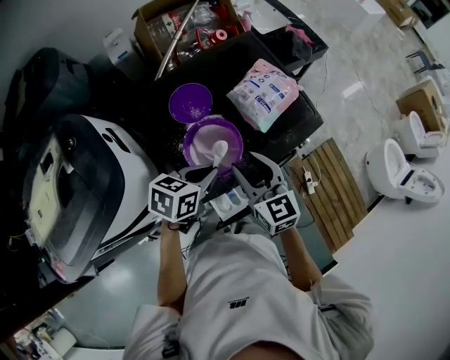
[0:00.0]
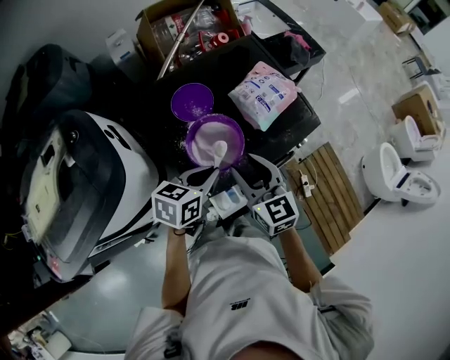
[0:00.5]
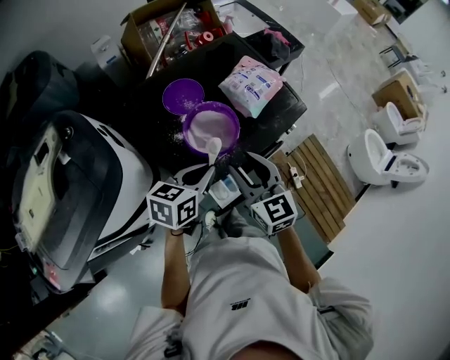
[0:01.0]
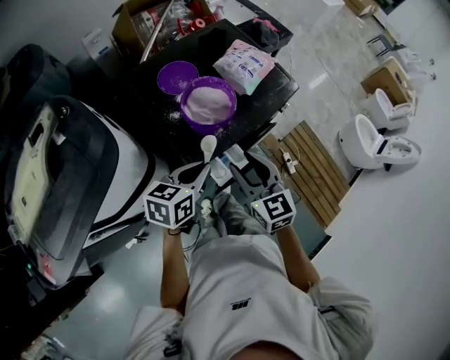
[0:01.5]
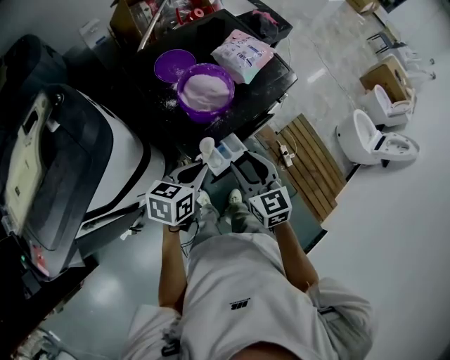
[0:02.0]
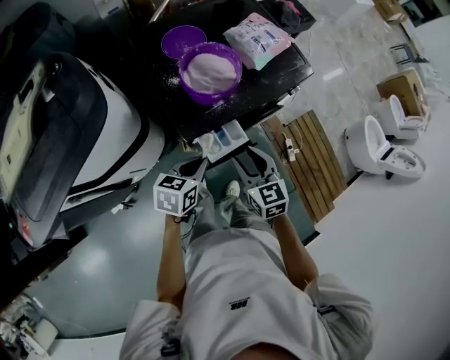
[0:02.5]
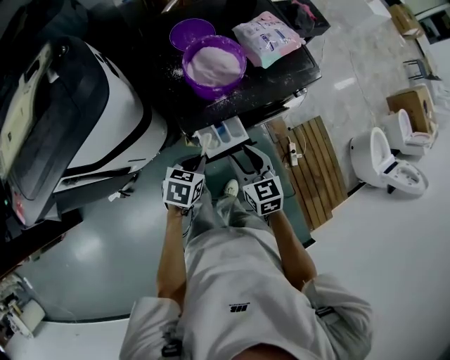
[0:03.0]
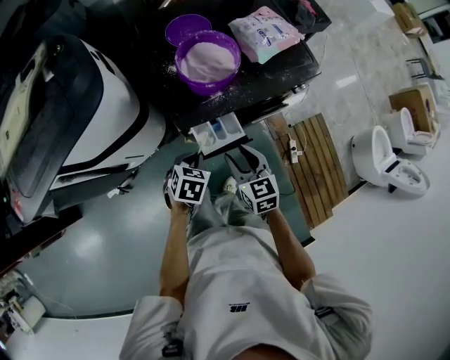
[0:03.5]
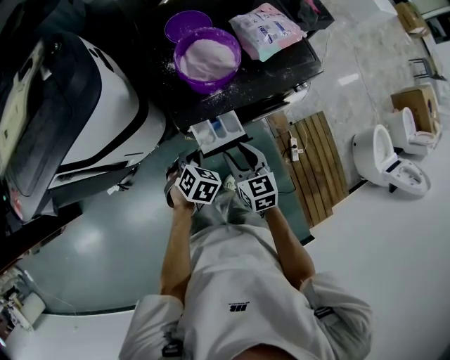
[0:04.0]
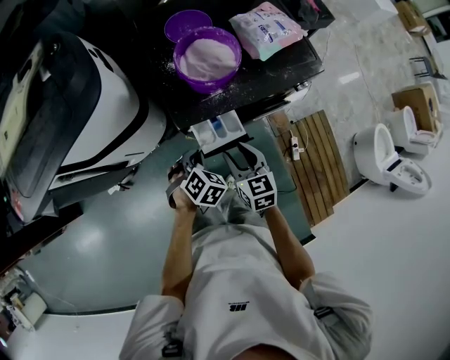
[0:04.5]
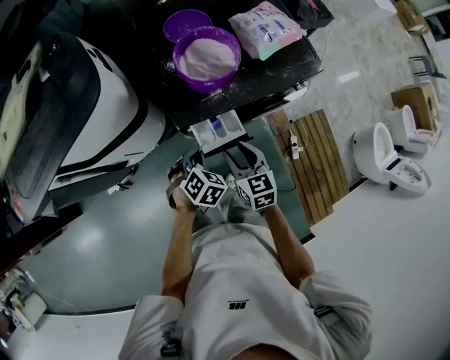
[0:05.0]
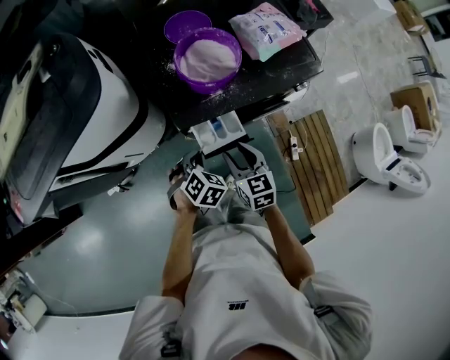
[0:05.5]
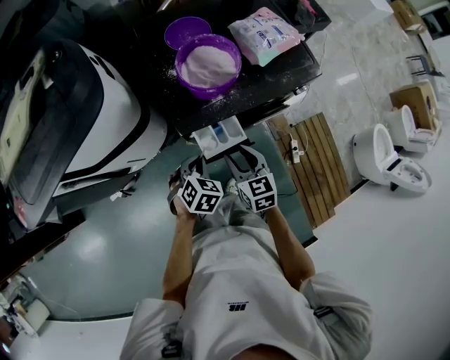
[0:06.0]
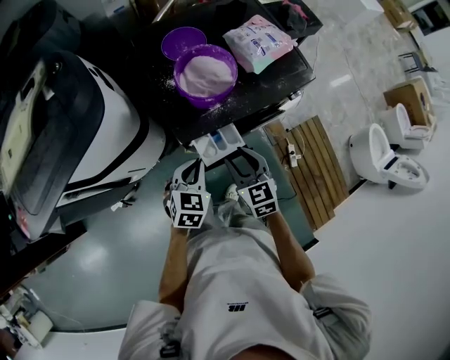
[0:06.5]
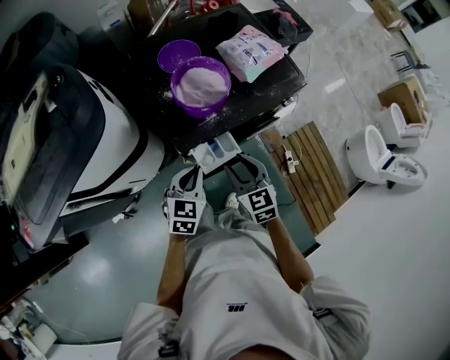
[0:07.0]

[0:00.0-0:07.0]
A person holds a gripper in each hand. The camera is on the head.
0.0 to 2.0 s: Both grippers travel together backward, some 20 cm.
2.0 to 3.5 s: Both grippers move downward, roughly 15 cm. The left gripper changes its angle by some 30 degrees.
3.5 to 5.0 s: The left gripper changes its angle by roughly 20 degrees.
5.0 to 7.0 s: The right gripper is displaced upward by about 5 cm; the left gripper goes about 10 cm upward, and swivels about 30 degrees.

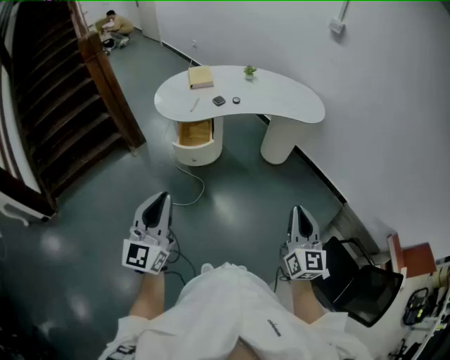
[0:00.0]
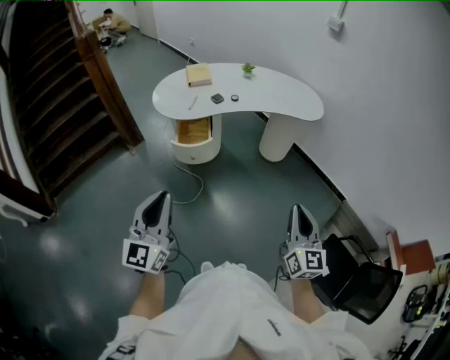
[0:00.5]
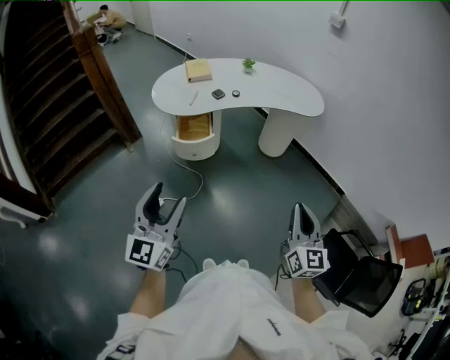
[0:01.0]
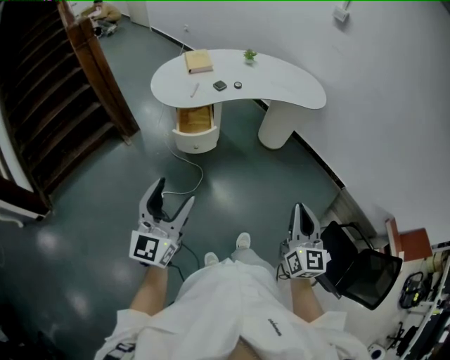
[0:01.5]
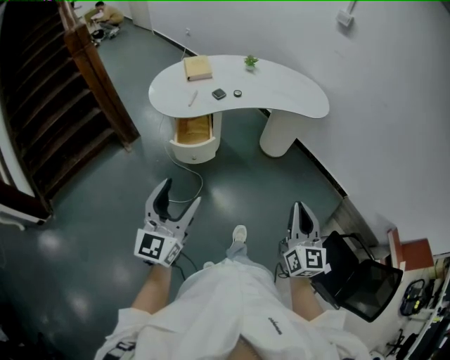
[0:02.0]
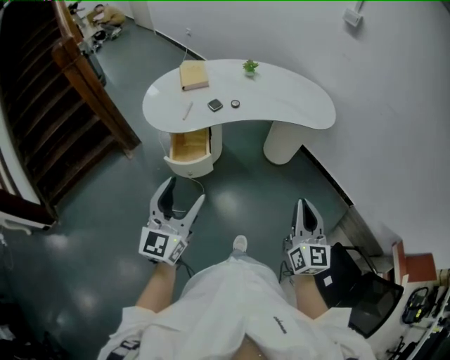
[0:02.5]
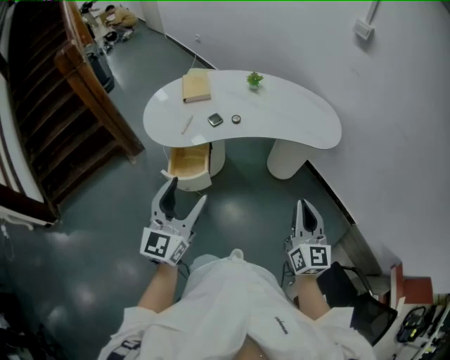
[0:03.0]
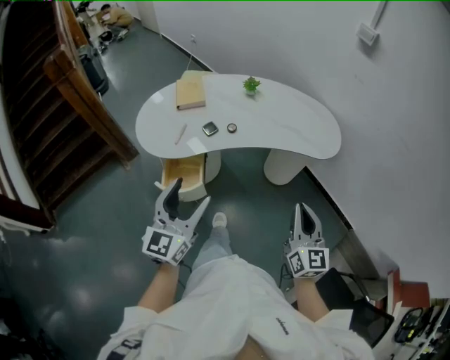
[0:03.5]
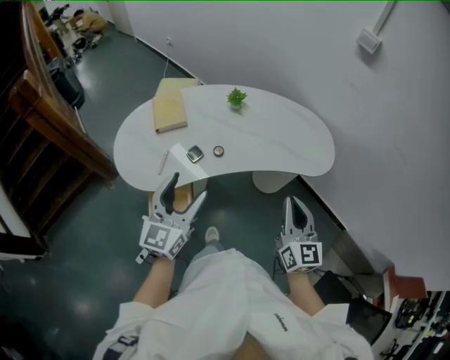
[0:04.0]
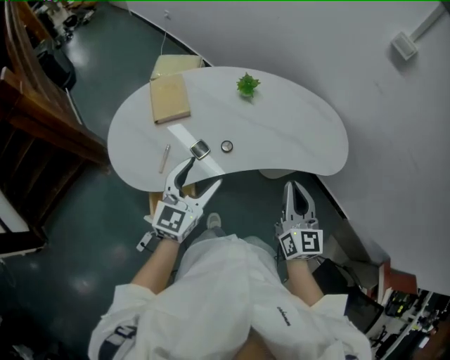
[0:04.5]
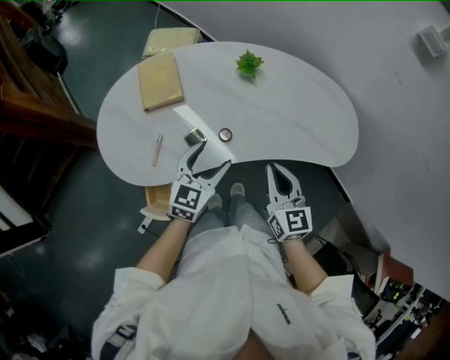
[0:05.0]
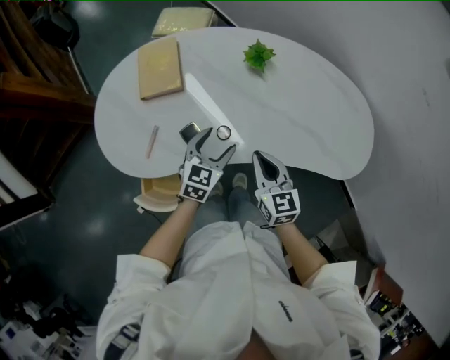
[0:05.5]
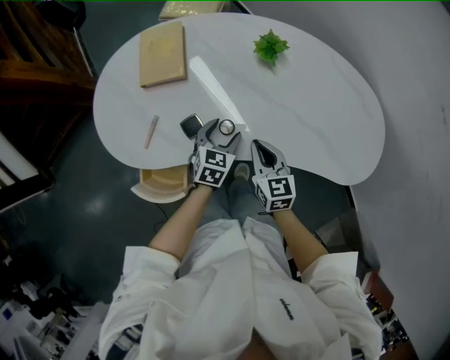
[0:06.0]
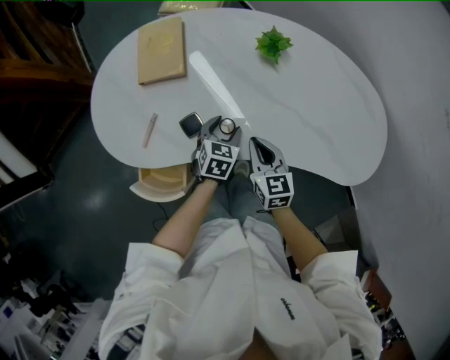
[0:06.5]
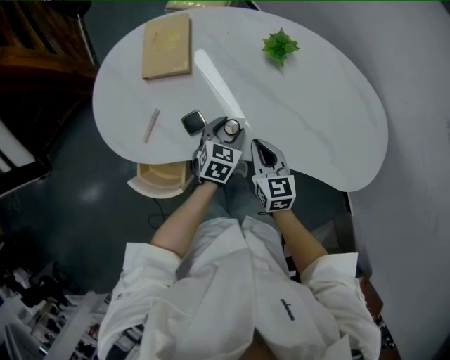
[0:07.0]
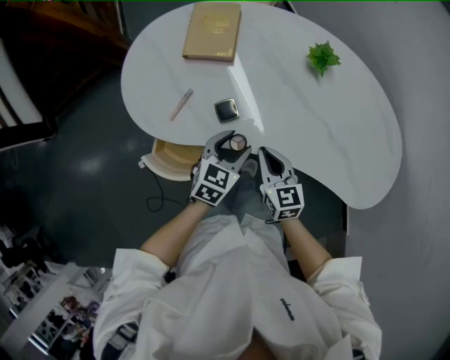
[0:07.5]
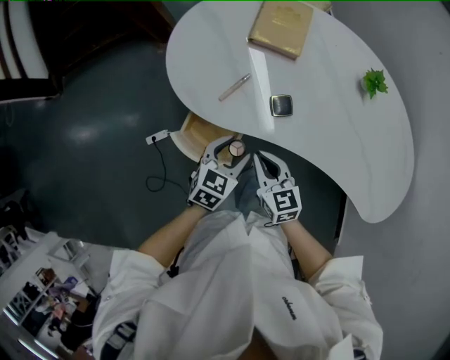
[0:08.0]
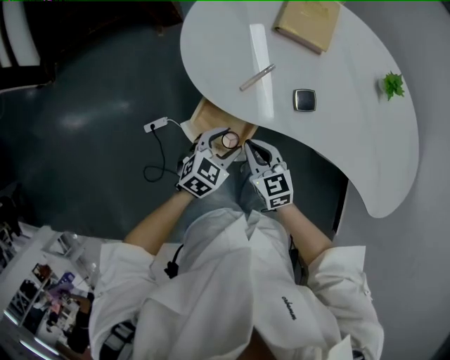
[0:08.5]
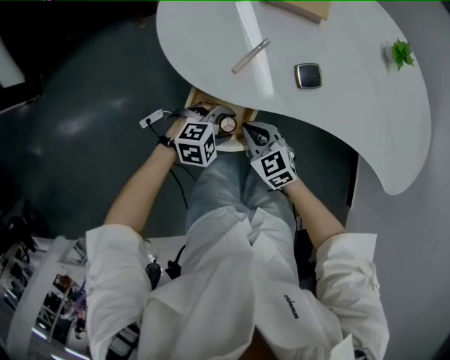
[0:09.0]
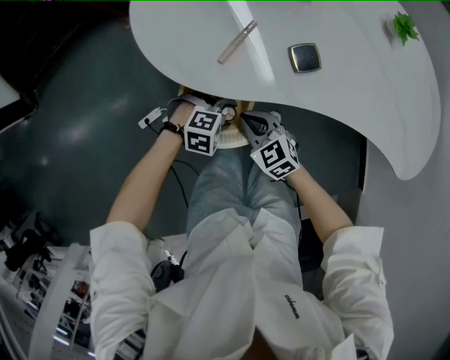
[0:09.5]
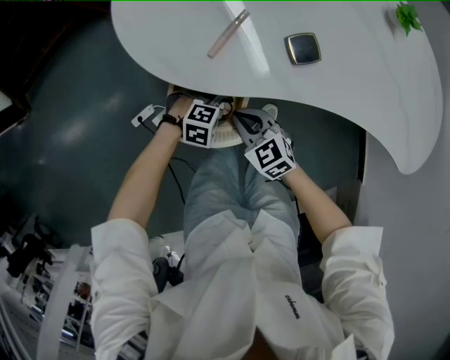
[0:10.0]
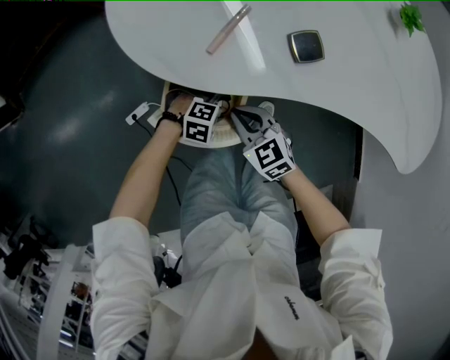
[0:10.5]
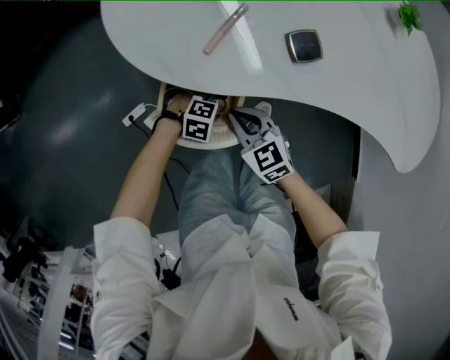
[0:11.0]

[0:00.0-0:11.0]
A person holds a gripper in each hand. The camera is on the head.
0.0 to 2.0 s: The left gripper goes about 10 cm forward, and opens its fingers, while the right gripper heads forward and to the left, covering about 10 cm.
2.0 to 3.5 s: Both grippers move forward, about 30 cm.
3.5 to 5.5 s: The two grippers travel together, forward, about 40 cm. The two grippers go about 25 cm downward. The right gripper swivels about 30 degrees. Meanwhile the left gripper angles its fingers downward, by about 40 degrees.
5.5 to 7.5 s: The left gripper moves approximately 10 cm downward and comes back; the right gripper heads to the left and downward, covering roughly 10 cm, and swivels about 20 degrees.
7.5 to 9.0 s: The left gripper ends up some 30 cm from where it was, and changes its angle by approximately 50 degrees; the right gripper ends up about 30 cm from where it was, and rotates about 40 degrees.
9.0 to 11.0 s: The left gripper travels downward by some 15 cm, and changes its angle by about 20 degrees.

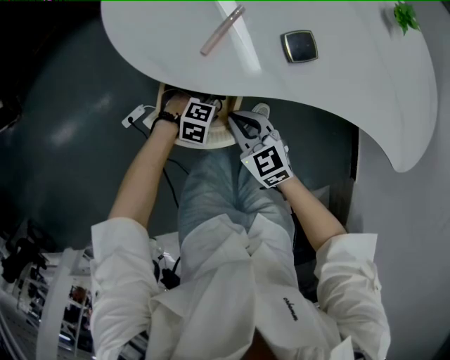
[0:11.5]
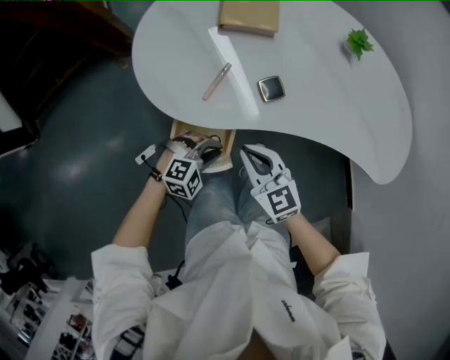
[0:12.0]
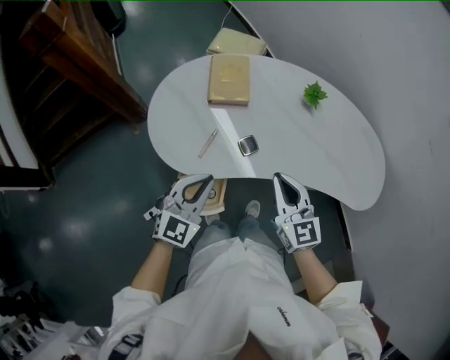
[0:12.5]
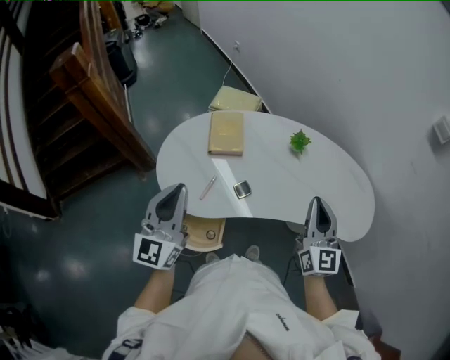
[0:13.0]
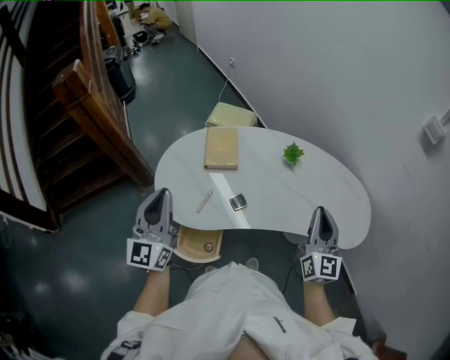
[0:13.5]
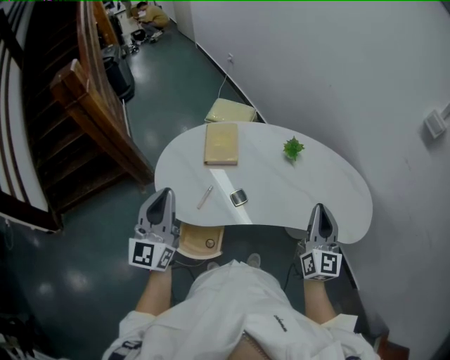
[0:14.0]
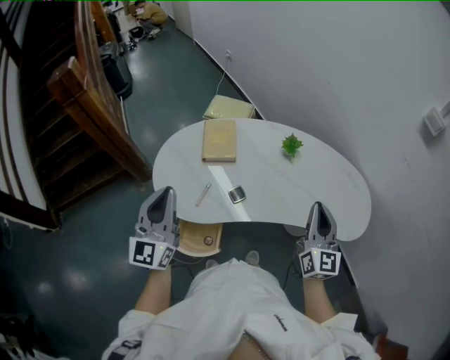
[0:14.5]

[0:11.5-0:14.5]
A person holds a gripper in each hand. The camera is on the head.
11.5 to 13.0 s: The two grippers go some 60 cm upward. The right gripper points its fingers some 40 degrees further upward; the left gripper tips its fingers upward by roughly 70 degrees, and closes its fingers.
13.0 to 14.5 s: The grippers stay close to where they were, moving slightly.

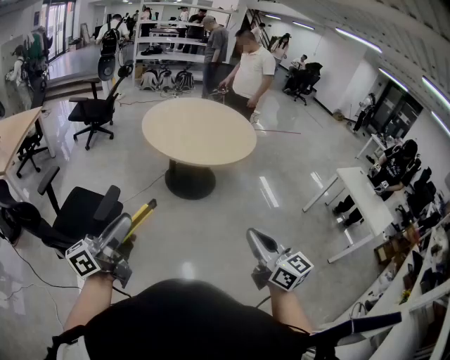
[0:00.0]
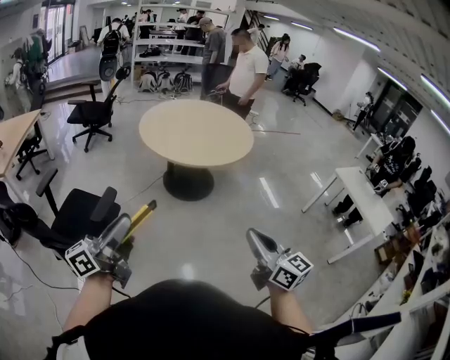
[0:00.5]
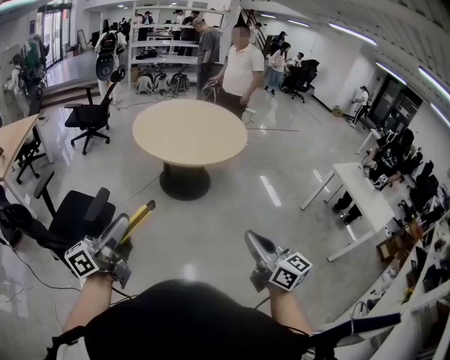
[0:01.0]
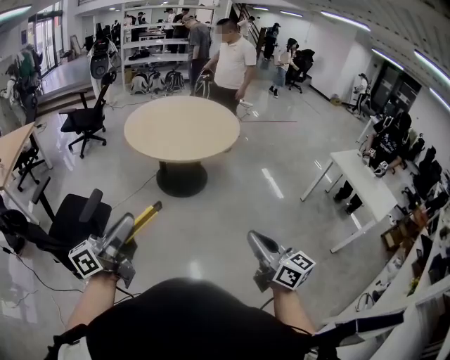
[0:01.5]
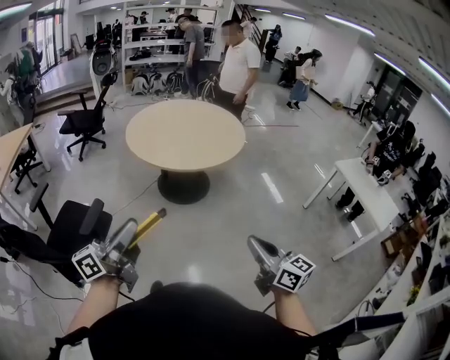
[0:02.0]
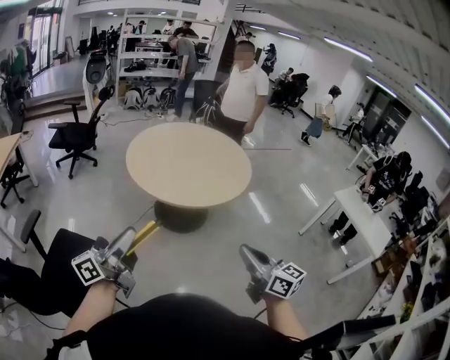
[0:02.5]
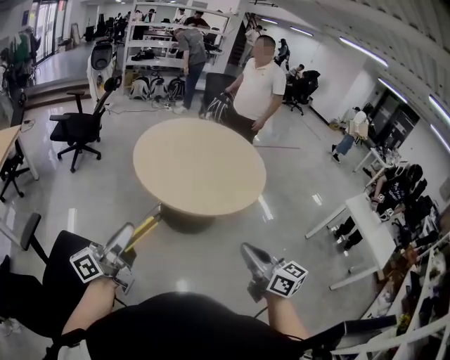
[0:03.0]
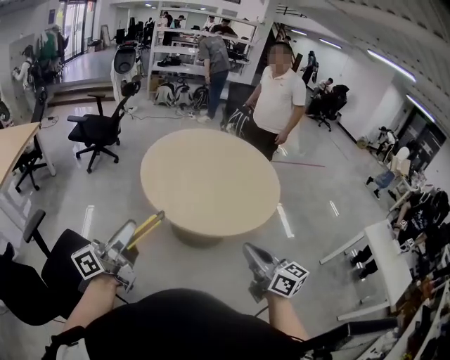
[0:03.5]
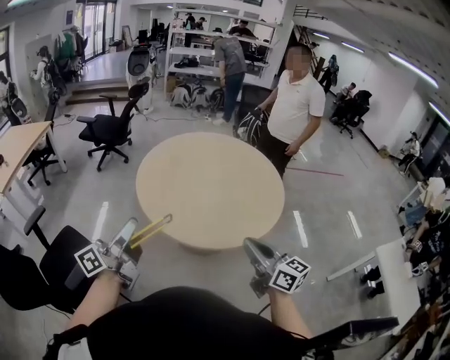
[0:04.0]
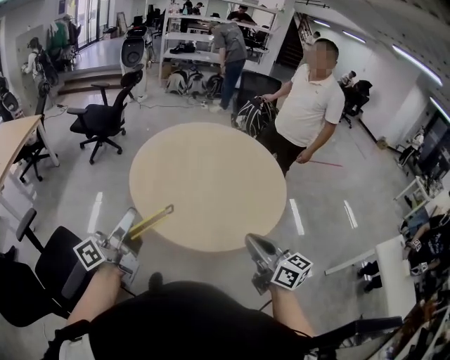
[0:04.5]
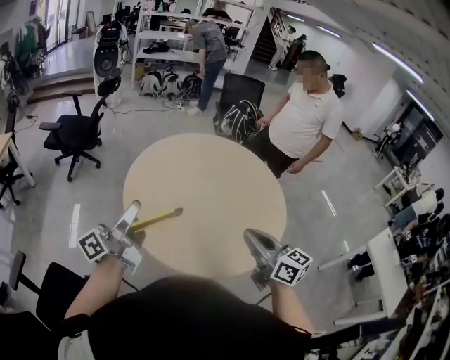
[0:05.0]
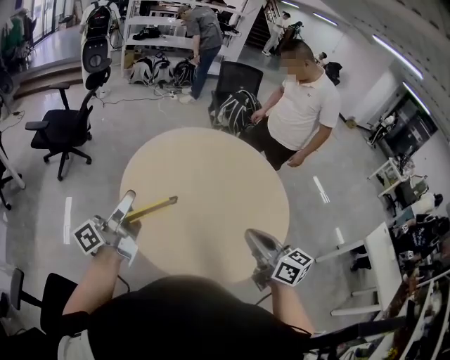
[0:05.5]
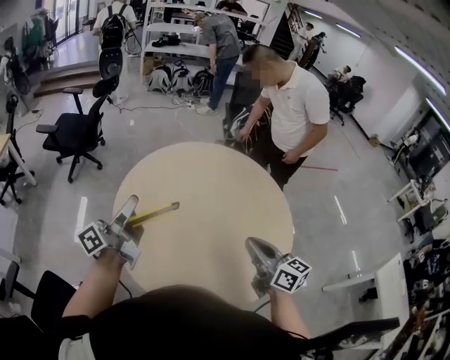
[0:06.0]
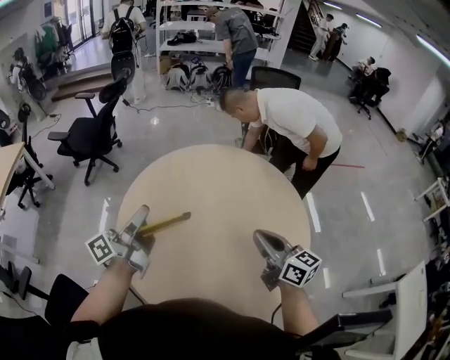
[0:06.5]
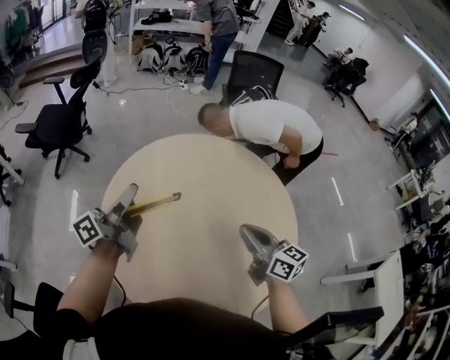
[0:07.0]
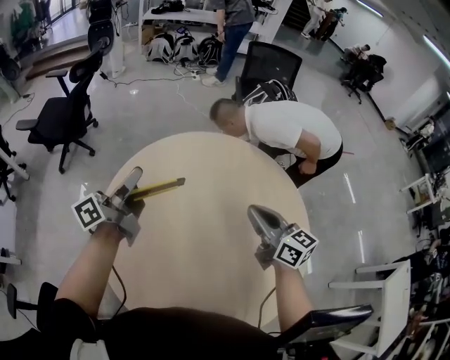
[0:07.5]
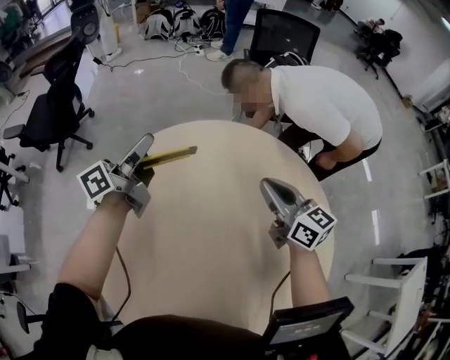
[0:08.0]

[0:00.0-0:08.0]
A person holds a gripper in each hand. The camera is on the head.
0.0 to 2.0 s: The right gripper heads to the right, covering approximately 10 cm. The left gripper shifts about 15 cm to the right and forward.
2.0 to 4.0 s: Both grippers are carried forward, some 50 cm.
4.0 to 6.0 s: Both grippers travel together forward, approximately 40 cm.
6.0 to 8.0 s: The two grippers travel together, forward, about 40 cm.
